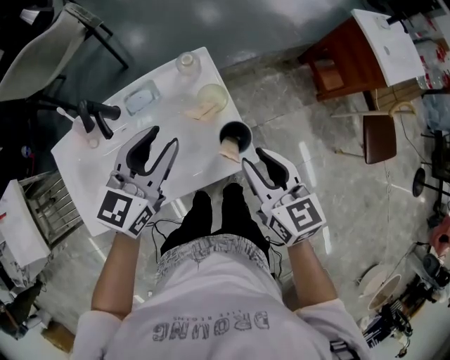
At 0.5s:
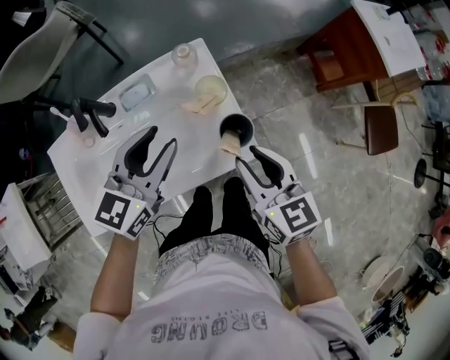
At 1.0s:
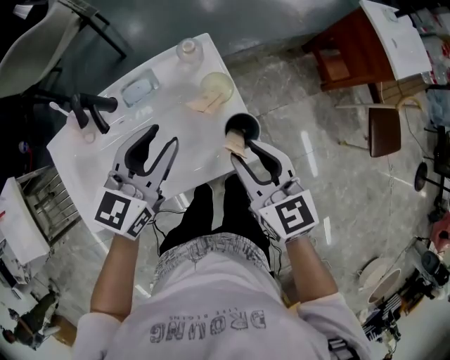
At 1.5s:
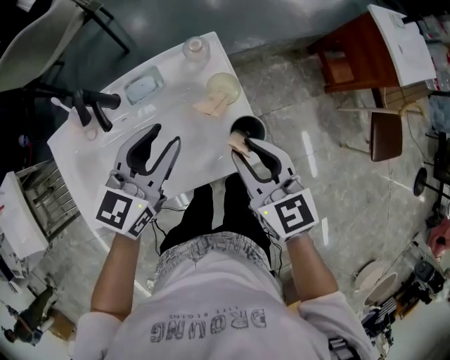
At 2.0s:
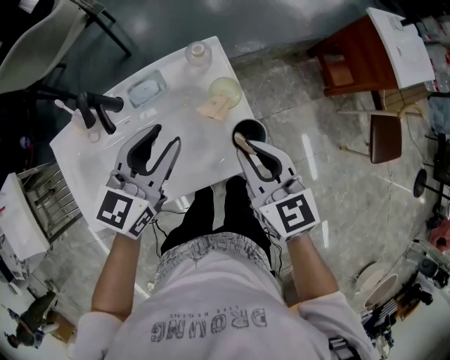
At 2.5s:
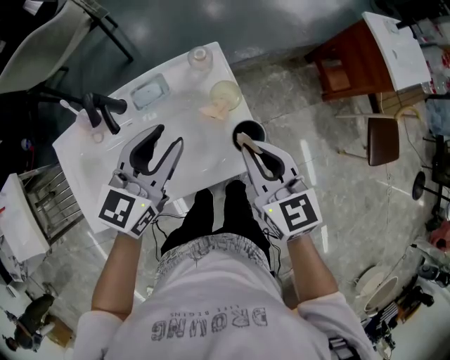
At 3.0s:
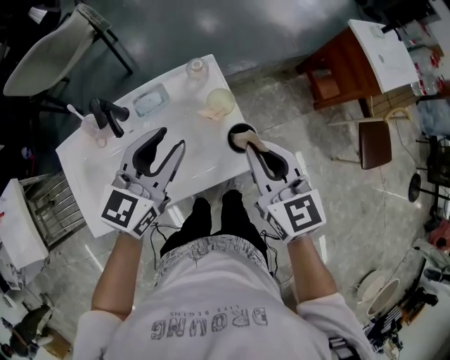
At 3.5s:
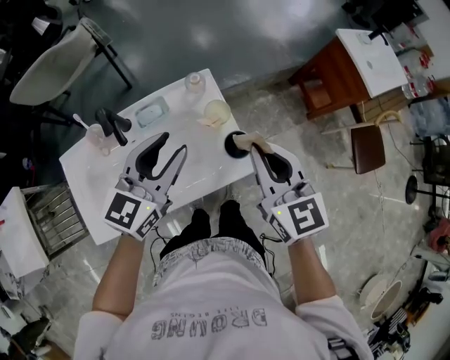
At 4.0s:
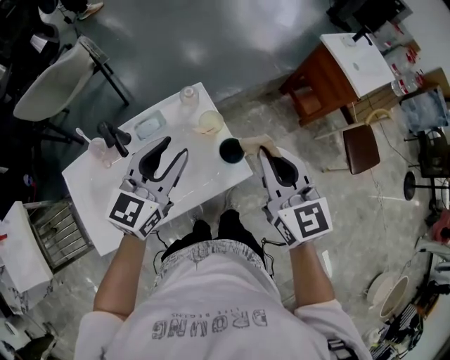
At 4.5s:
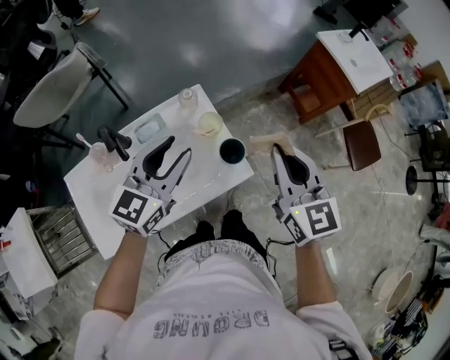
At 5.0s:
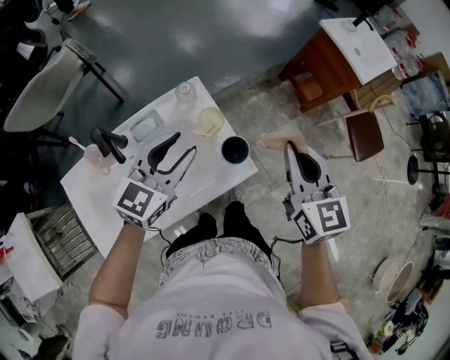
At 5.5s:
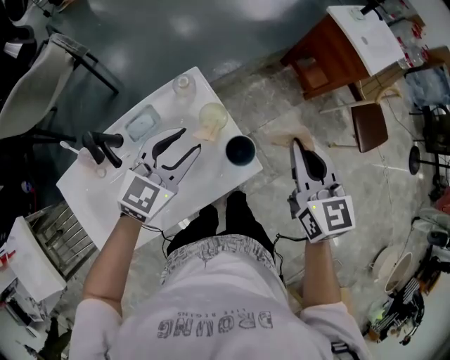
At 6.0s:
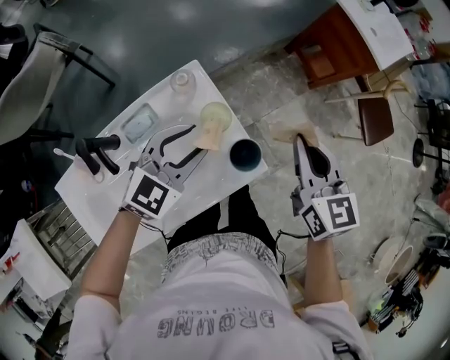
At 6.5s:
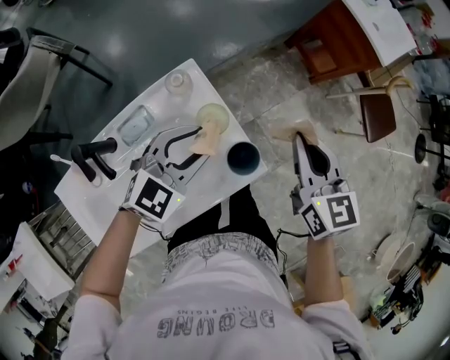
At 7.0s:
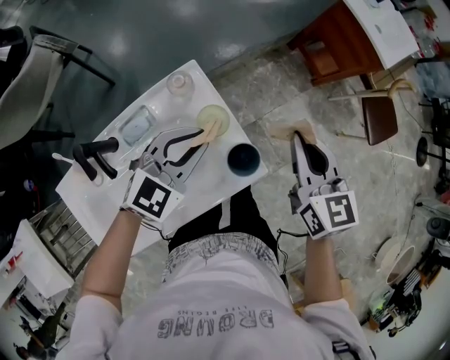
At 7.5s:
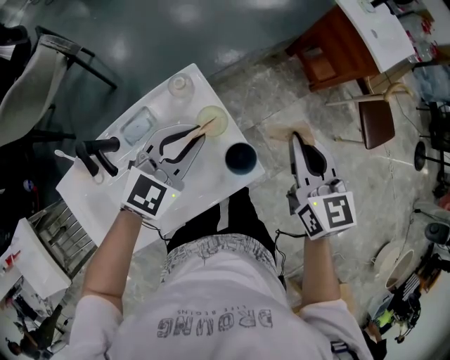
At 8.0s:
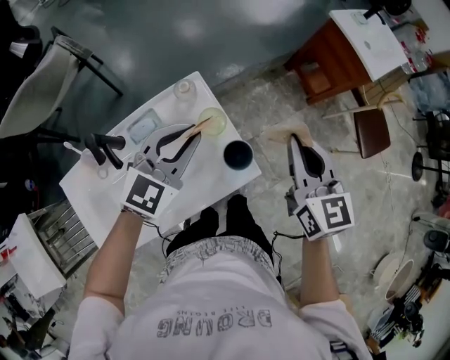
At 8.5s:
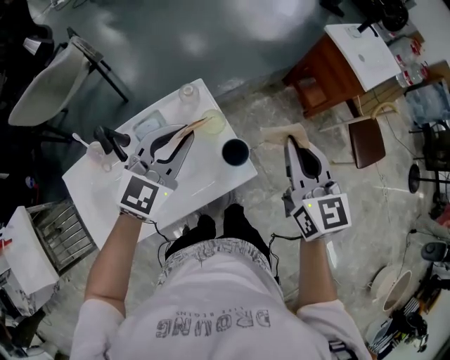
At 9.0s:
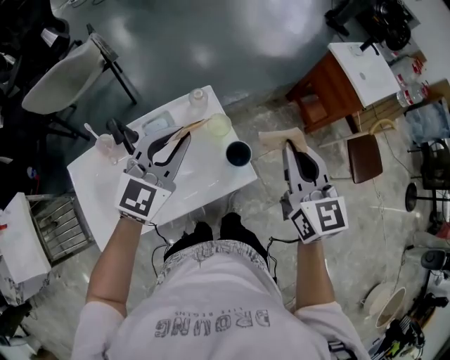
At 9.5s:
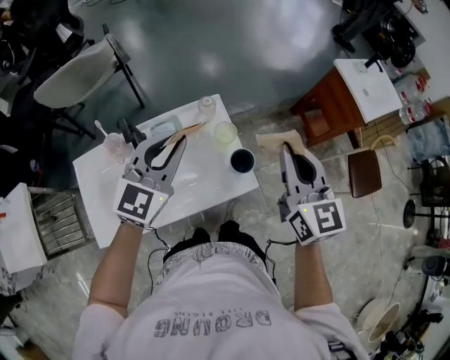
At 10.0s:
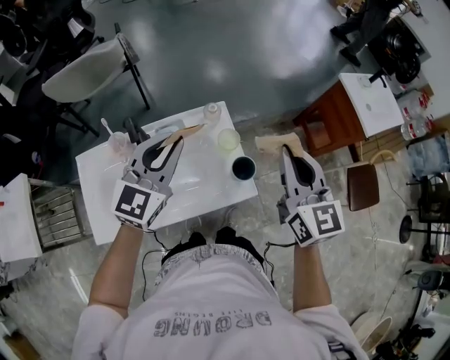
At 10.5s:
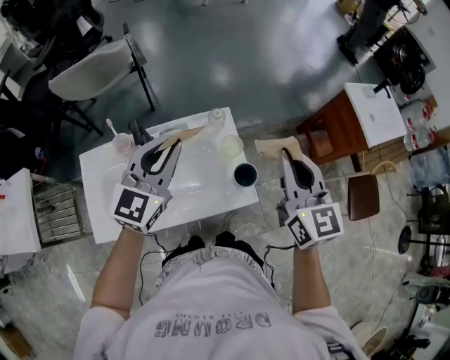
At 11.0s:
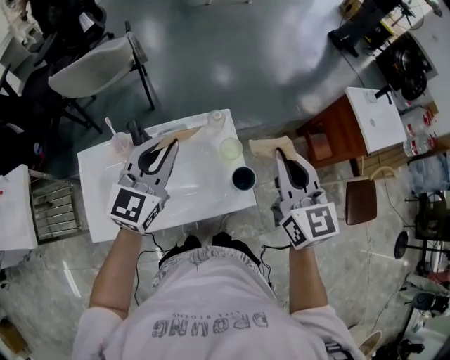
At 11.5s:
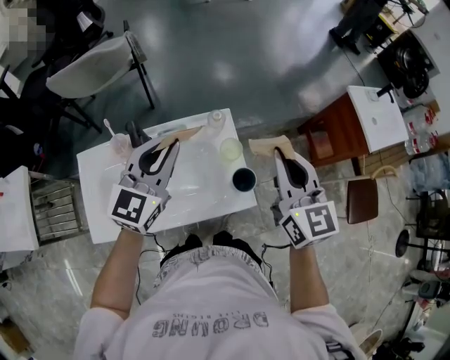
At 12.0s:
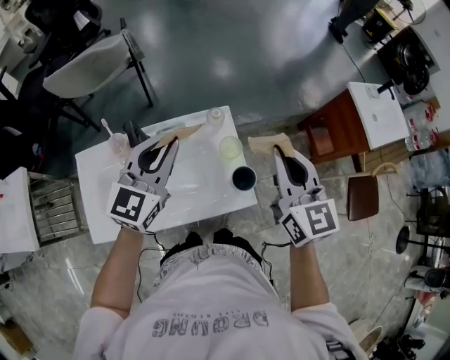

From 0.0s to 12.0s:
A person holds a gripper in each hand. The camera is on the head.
From 0.0s to 2.0s: The right gripper moves about 5 cm, and closes.
From 2.0s to 4.0s: The right gripper goes approximately 15 cm upward and to the right, and turns by about 20 degrees, while the left gripper travels upward by roughly 10 cm.
From 4.0s to 6.0s: Both grippers move downward and forward, approximately 10 cm. The left gripper rotates some 30 degrees.
From 6.0s to 8.0s: The left gripper shifts about 5 cm upward, and closes up.
From 8.0s to 10.0s: The left gripper shifts roughly 15 cm upward, to the left and backward, and swivels approximately 30 degrees. Meanwhile the right gripper goes approximately 10 cm upward and to the left.
From 10.0s to 12.0s: There are only small adjustments of the grippers.

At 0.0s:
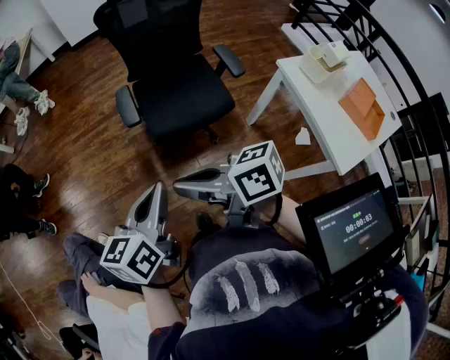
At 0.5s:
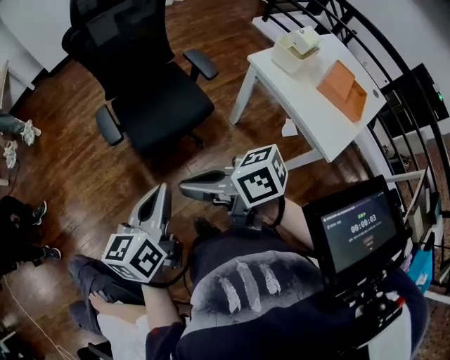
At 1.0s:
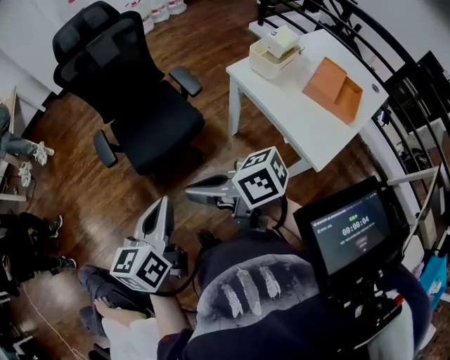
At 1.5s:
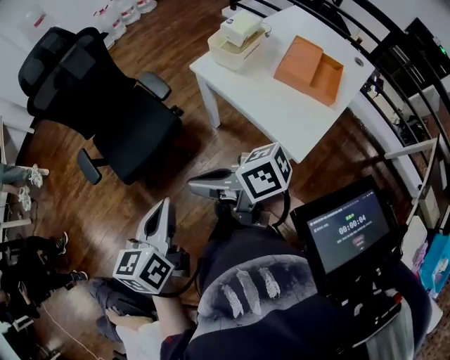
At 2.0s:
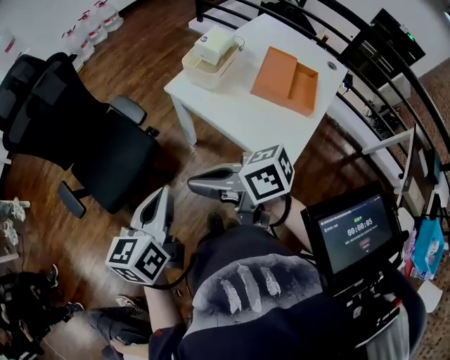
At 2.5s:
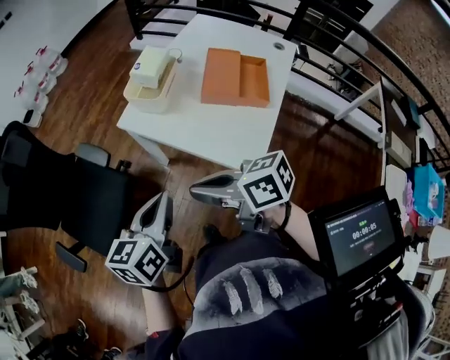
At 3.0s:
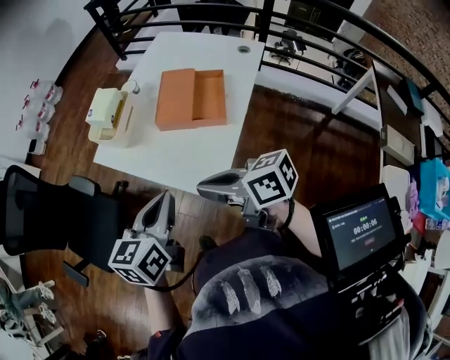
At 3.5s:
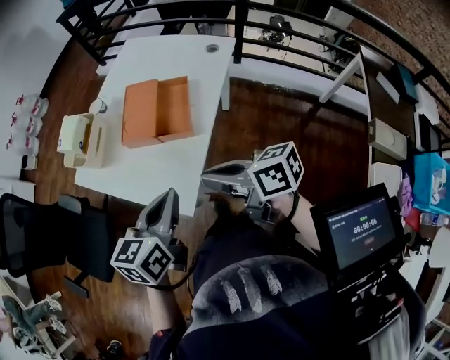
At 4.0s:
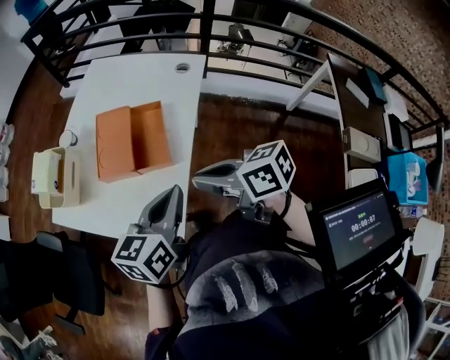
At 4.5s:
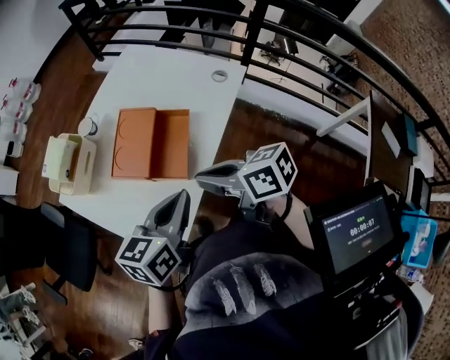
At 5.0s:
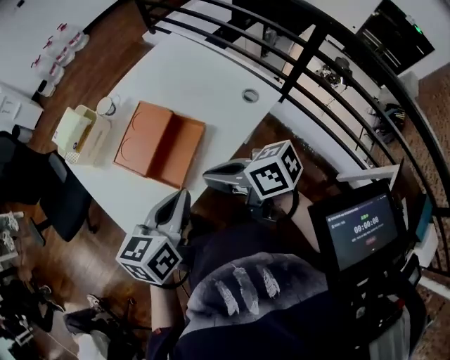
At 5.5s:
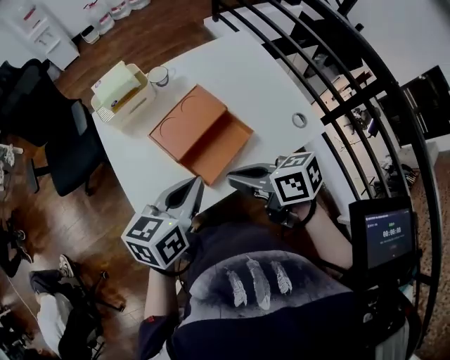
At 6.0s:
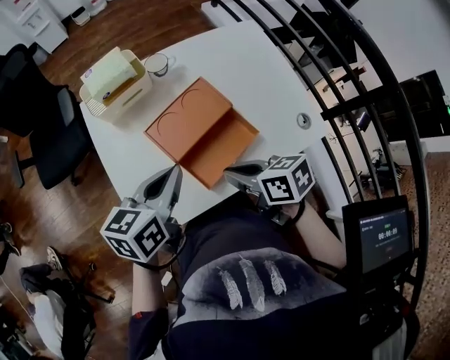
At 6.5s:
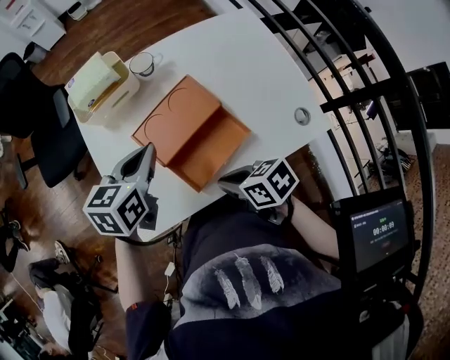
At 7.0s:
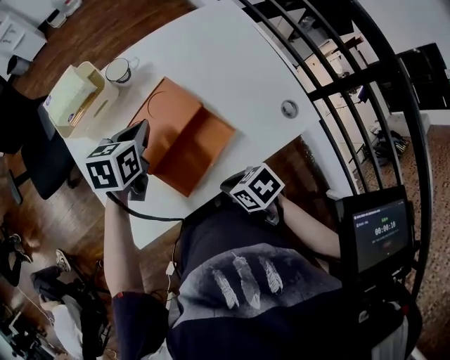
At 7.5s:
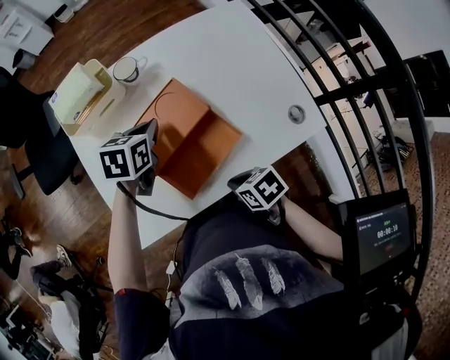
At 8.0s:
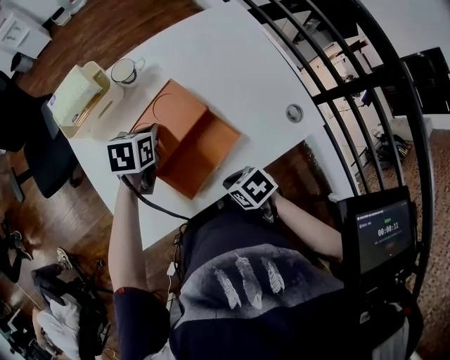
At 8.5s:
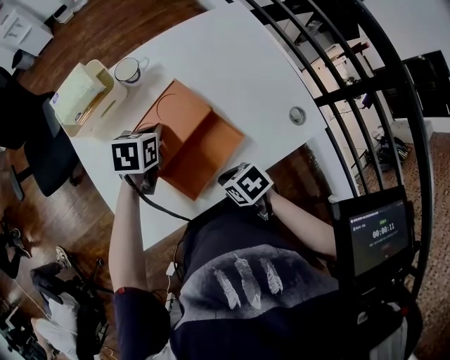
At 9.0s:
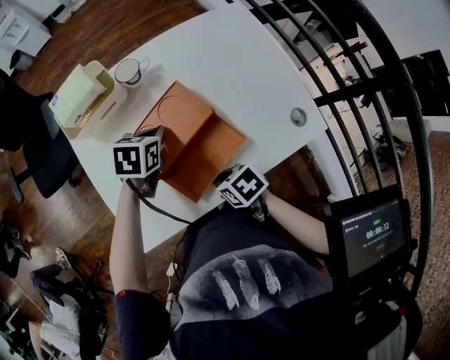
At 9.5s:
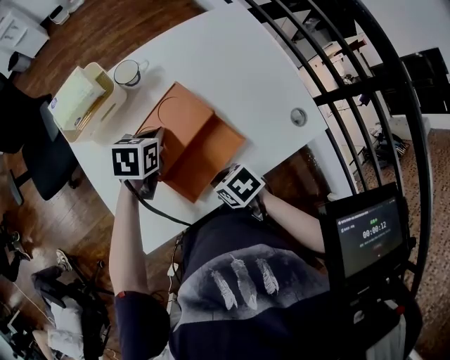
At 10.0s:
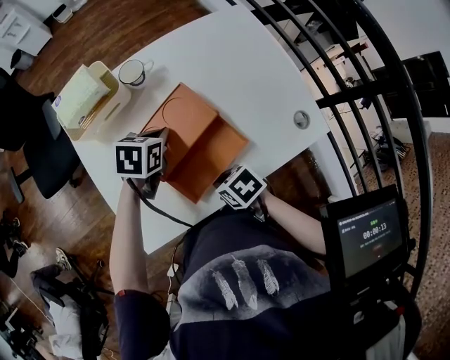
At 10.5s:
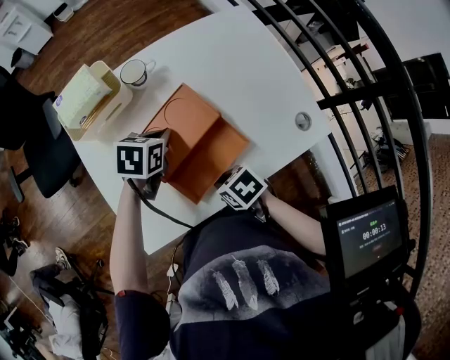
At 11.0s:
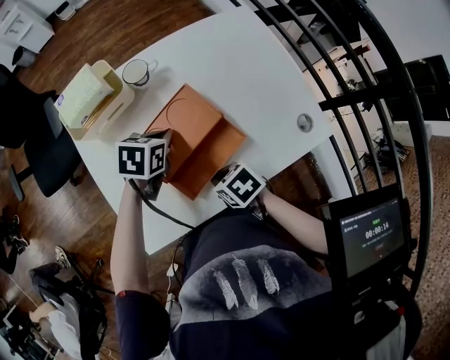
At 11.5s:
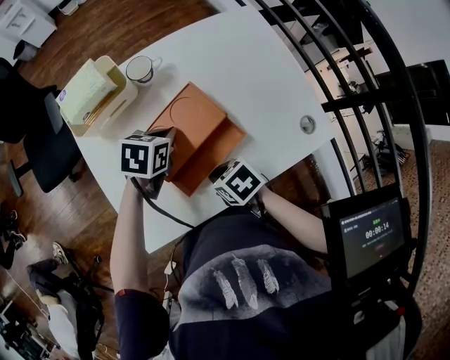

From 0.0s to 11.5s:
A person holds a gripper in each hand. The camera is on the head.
From 0.0s to 2.0s: The right gripper shifts by roughly 40 cm, and swivels some 30 degrees. Meanwhile the left gripper changes place by about 40 cm, and swivels some 30 degrees.
From 2.0s to 4.0s: Both grippers are carried approximately 50 cm. The right gripper rotates roughly 30 degrees; the left gripper turns by about 40 degrees.
From 4.0s to 6.0s: The right gripper ends up approximately 20 cm from where it was, and changes its angle by roughly 50 degrees; the left gripper ends up roughly 20 cm from where it was, and rotates about 50 degrees.
From 6.0s to 7.5s: The right gripper heads downward, to the right and backward, covering about 15 cm, and changes its angle by some 20 degrees. The left gripper travels forward, downward and to the right by roughly 20 cm, and swivels about 20 degrees.
From 7.5s to 9.5s: The right gripper ends up approximately 5 cm from where it was.
From 9.5s to 11.5s: There are only small adjustments of the grippers.

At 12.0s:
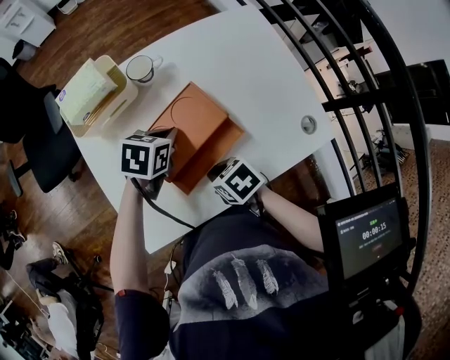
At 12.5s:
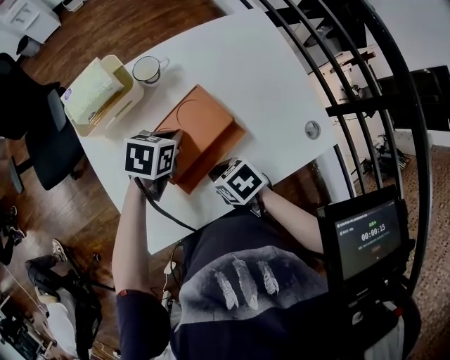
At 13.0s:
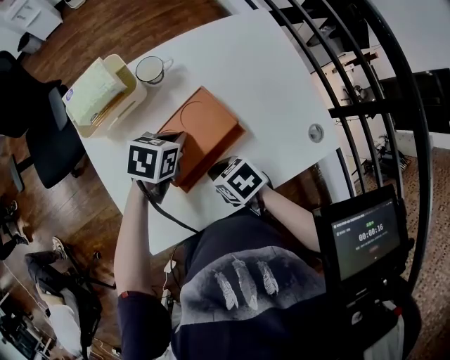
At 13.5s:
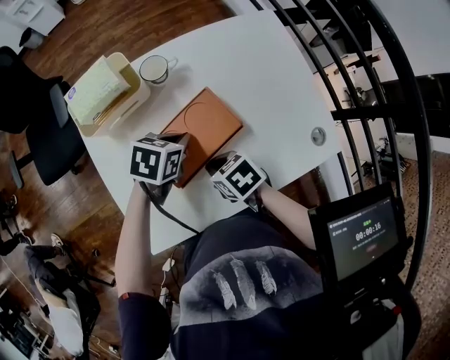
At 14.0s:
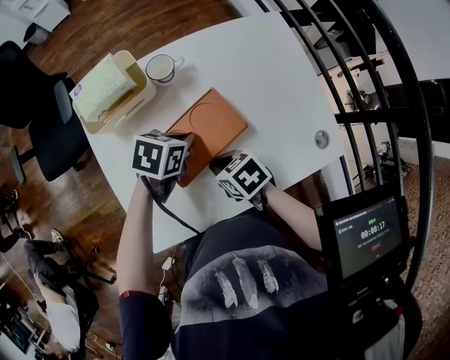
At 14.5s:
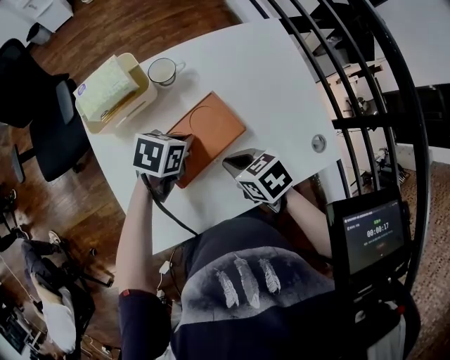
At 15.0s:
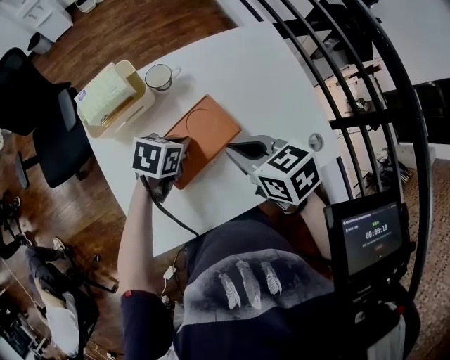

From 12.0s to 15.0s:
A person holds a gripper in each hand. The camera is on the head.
From 12.0s to 13.5s: The right gripper ends up approximately 5 cm from where it was.
From 13.5s to 15.0s: The right gripper shifts about 15 cm upward, and rotates roughly 20 degrees.
